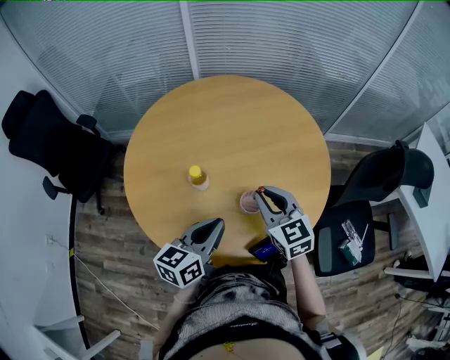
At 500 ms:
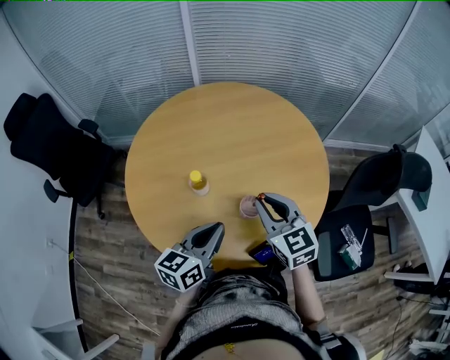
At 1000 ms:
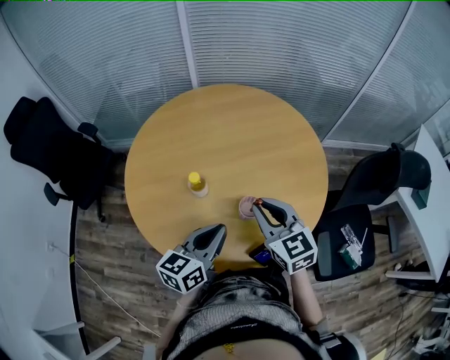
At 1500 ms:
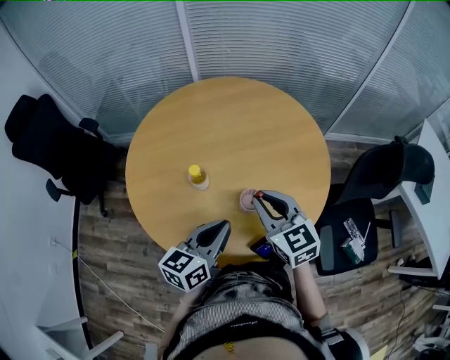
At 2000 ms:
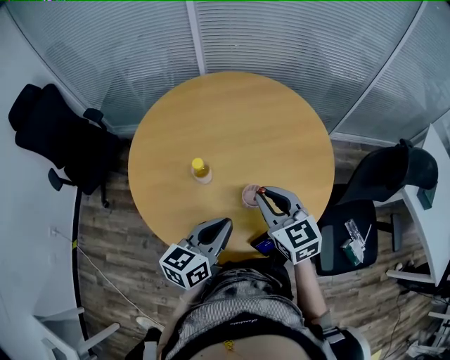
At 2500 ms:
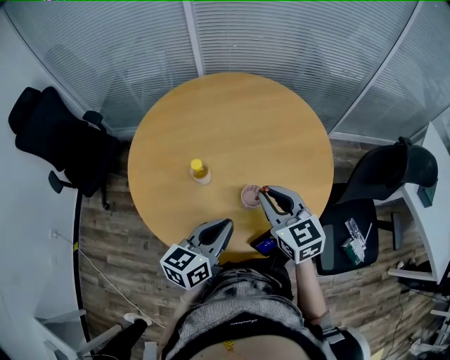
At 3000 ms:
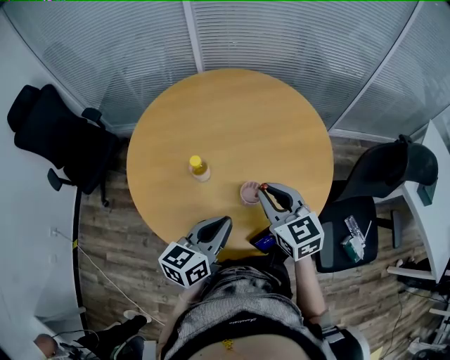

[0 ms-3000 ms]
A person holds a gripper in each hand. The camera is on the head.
0 ms to 3000 ms: The grippers make only small movements.

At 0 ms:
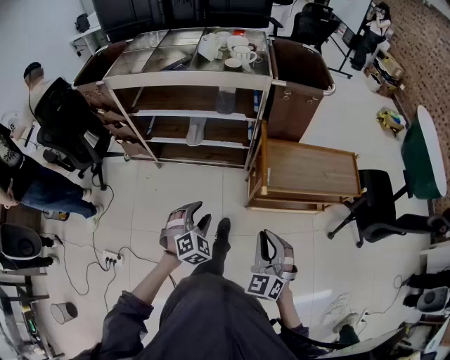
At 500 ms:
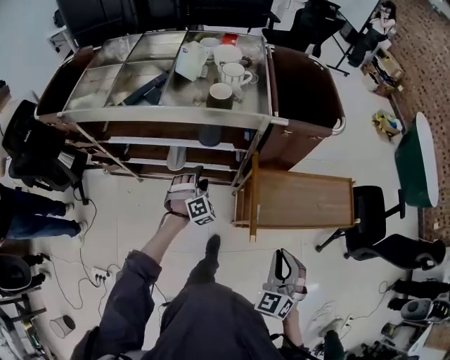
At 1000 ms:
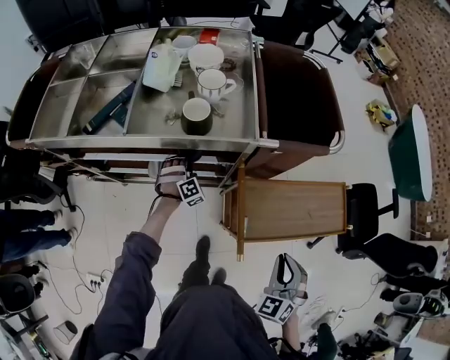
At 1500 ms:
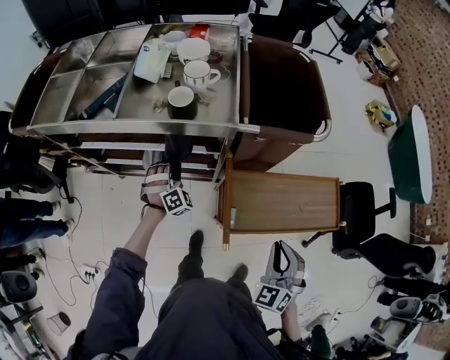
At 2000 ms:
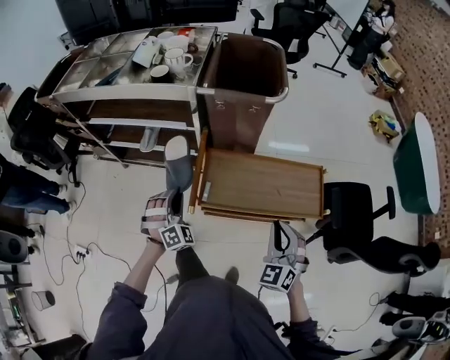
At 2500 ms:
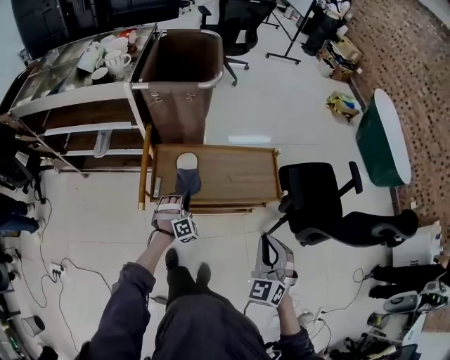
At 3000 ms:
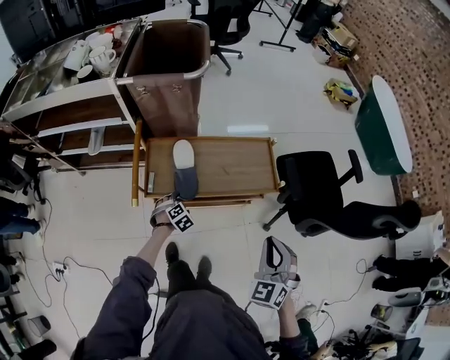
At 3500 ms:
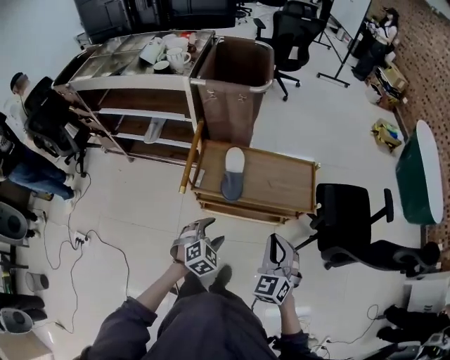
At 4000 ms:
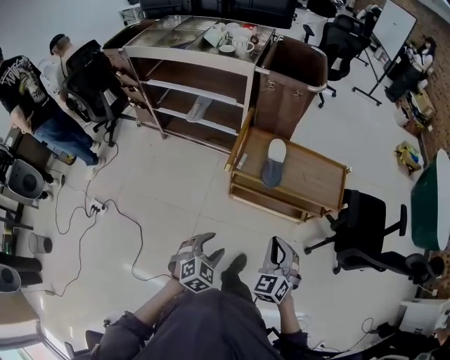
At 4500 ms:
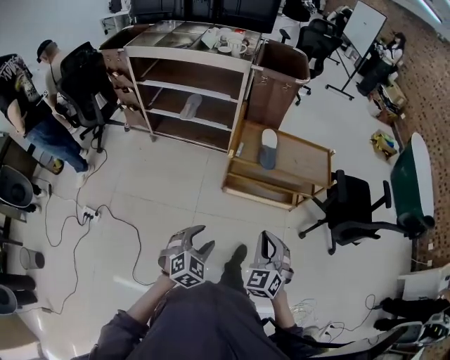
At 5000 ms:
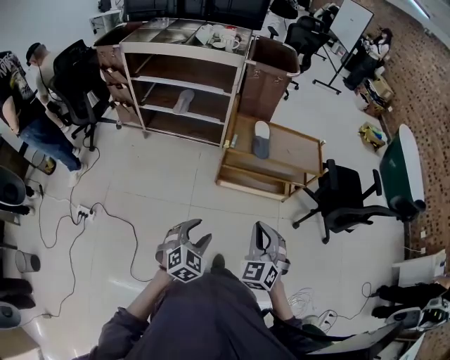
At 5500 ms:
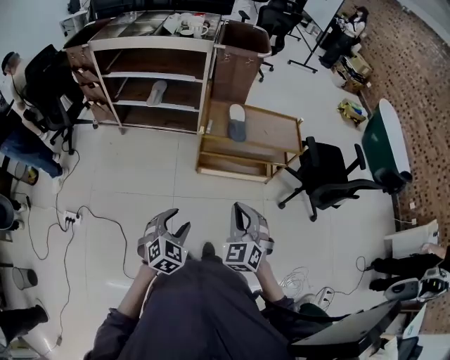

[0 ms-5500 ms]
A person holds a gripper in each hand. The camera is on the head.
0 ms to 2000 ms: The left gripper heads forward and to the right, covering some 25 cm, rotates about 30 degrees, and closes up. Meanwhile the right gripper heads to the right and forward, covering about 35 cm.
2000 ms to 3500 ms: The left gripper shifts about 30 cm to the right and backward, turns by some 40 degrees, and opens its fingers, while the right gripper travels backward and to the right by roughly 15 cm.
3500 ms to 5500 ms: Both grippers move backward and to the left, approximately 35 cm.

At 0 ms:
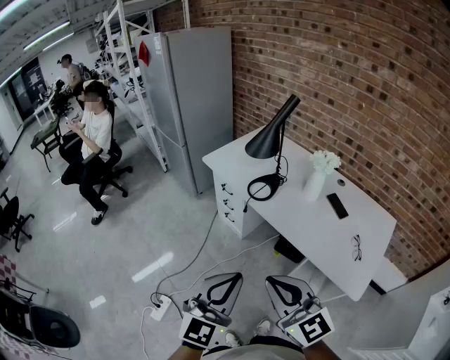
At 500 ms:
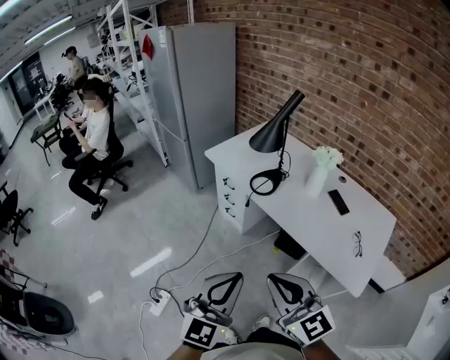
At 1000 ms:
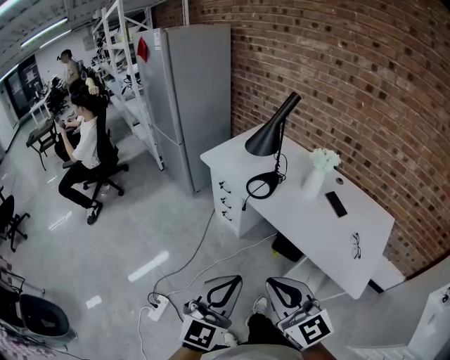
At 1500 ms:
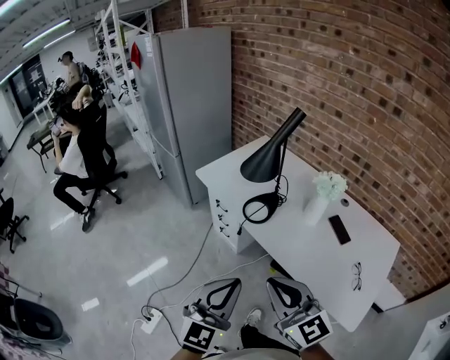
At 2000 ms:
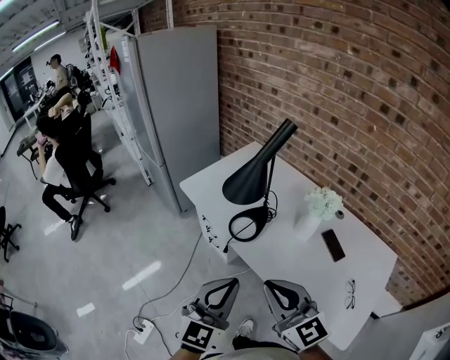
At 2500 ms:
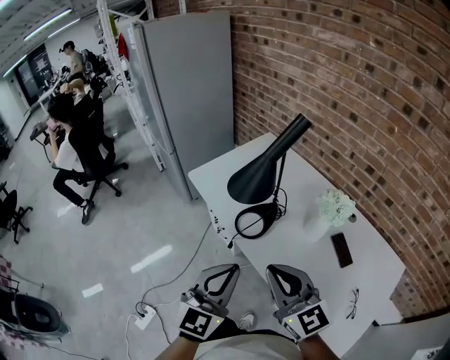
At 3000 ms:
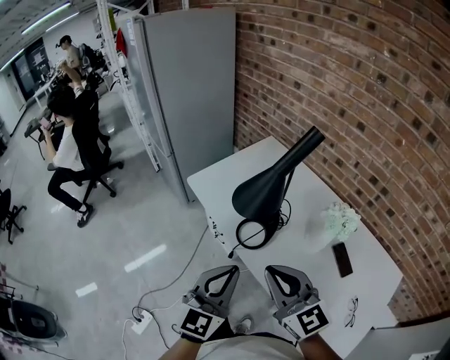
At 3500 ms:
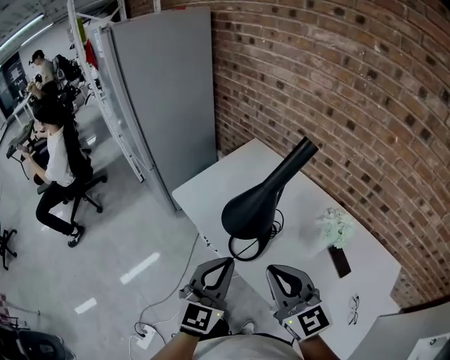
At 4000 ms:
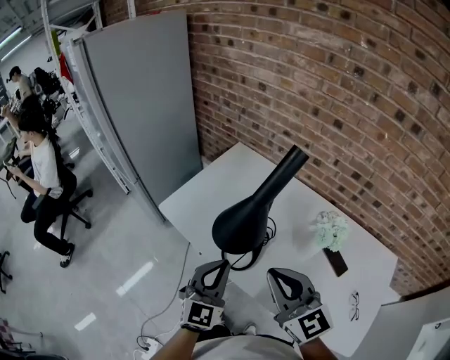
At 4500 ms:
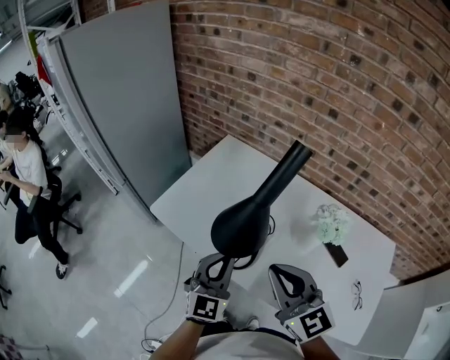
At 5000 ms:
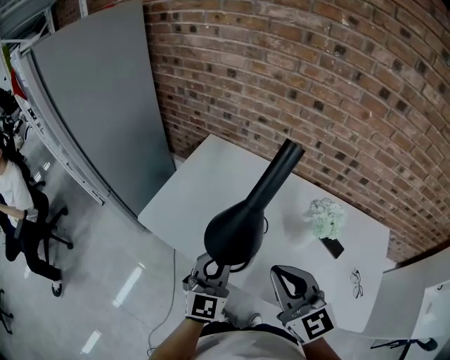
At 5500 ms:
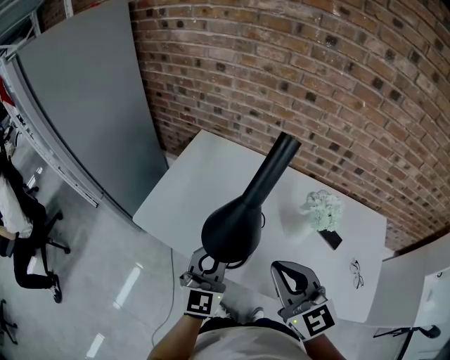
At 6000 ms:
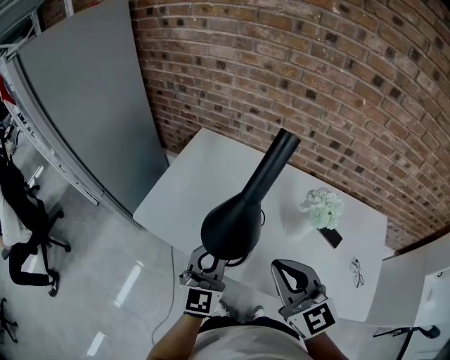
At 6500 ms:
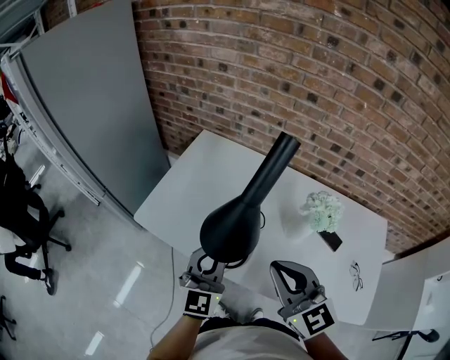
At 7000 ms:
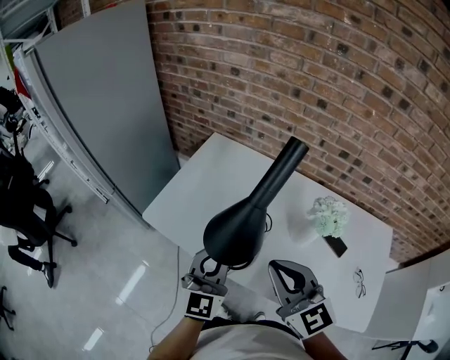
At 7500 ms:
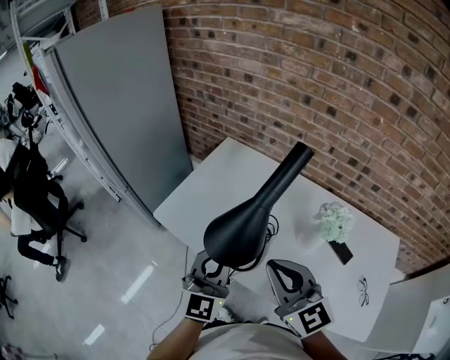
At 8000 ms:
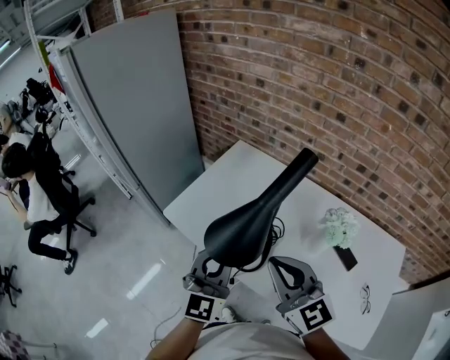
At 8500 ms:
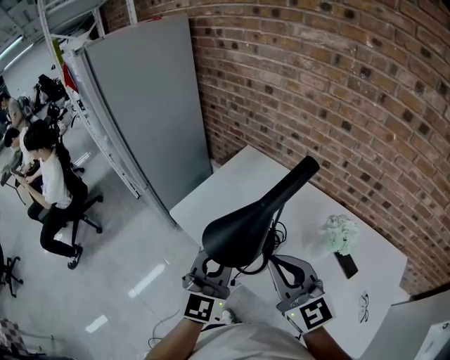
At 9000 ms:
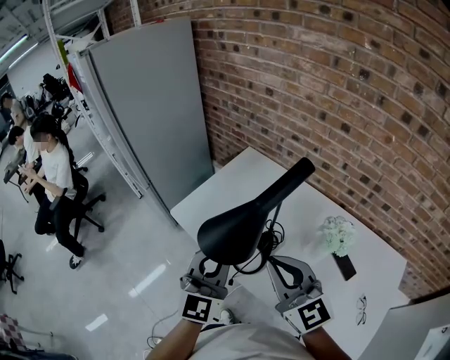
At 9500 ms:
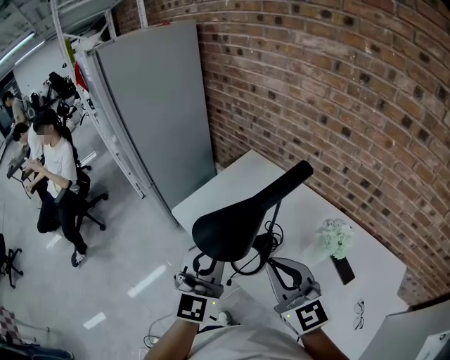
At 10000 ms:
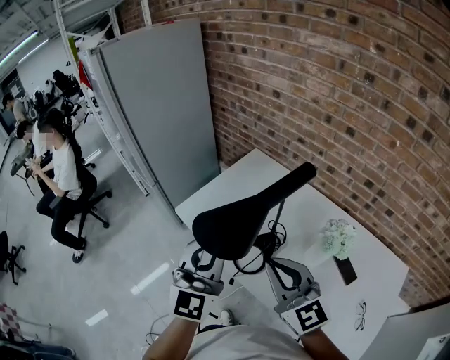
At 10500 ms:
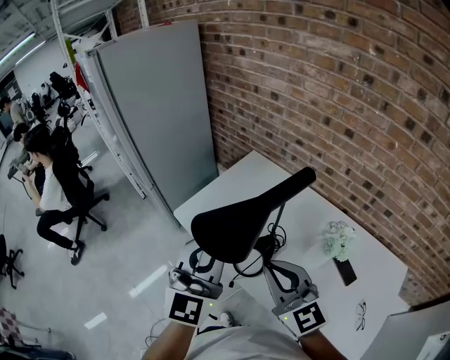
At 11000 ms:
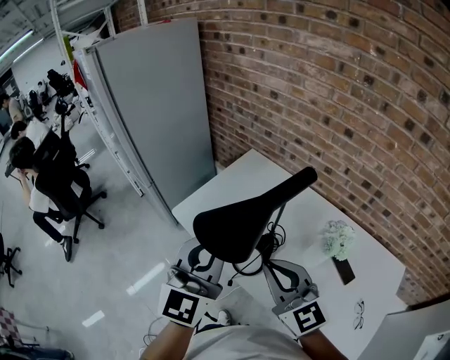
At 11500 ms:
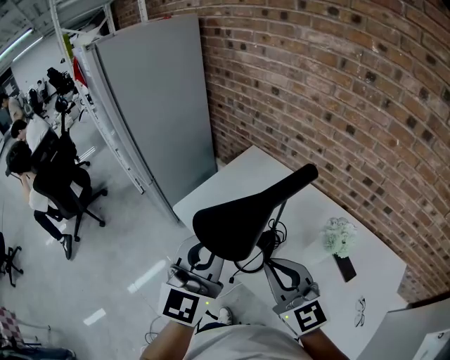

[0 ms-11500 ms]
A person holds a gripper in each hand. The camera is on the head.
0 ms to 2000 ms: Both grippers move forward, roughly 20 cm.
2000 ms to 4000 ms: Both grippers travel together forward, approximately 20 cm.
4000 ms to 6000 ms: The left gripper travels forward by some 5 cm.
6000 ms to 7500 ms: The left gripper shifts by about 5 cm.
7500 ms to 9500 ms: The left gripper heads upward, covering about 10 cm.
9500 ms to 11500 ms: The left gripper travels upward by about 5 cm.

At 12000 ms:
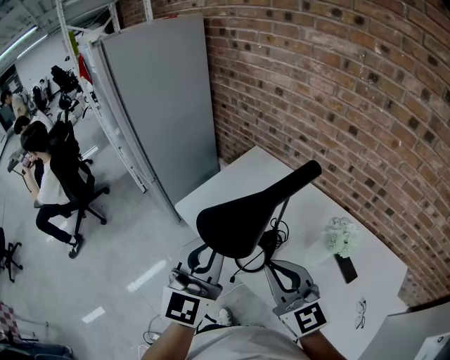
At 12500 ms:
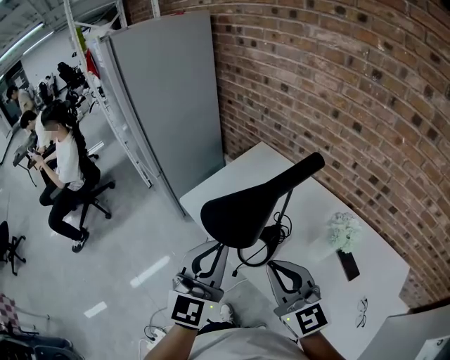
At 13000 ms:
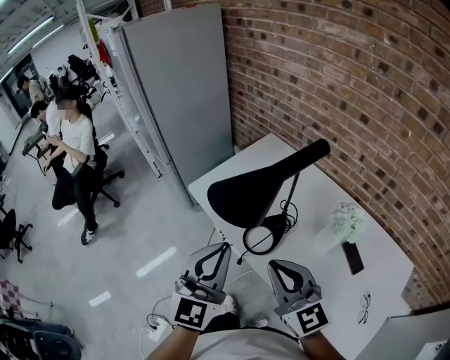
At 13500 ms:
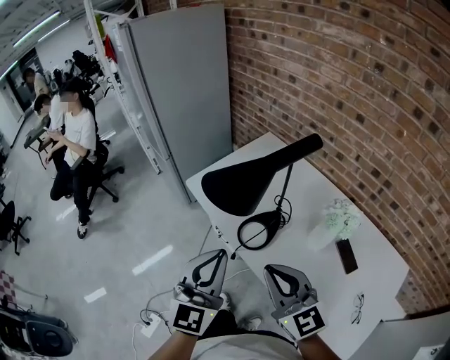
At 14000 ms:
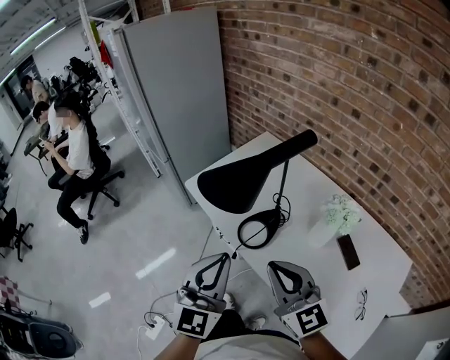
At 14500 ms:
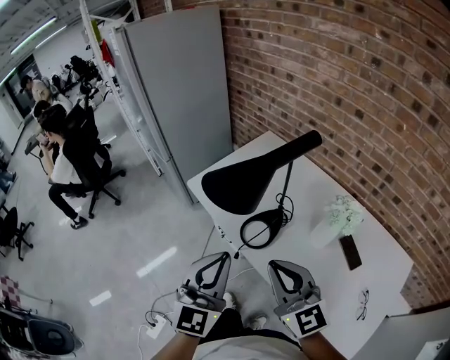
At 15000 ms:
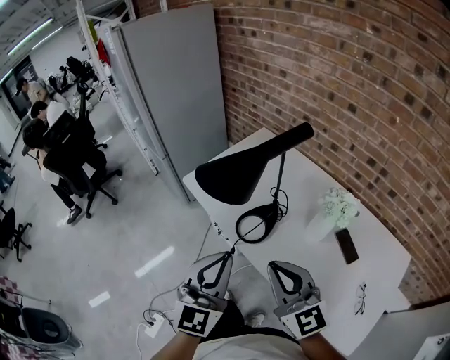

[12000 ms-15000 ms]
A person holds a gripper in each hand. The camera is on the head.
12000 ms to 13500 ms: The left gripper shifts about 15 cm backward and downward. The right gripper shifts about 10 cm backward.
13500 ms to 15000 ms: The grippers stay close to where they were, moving slightly.

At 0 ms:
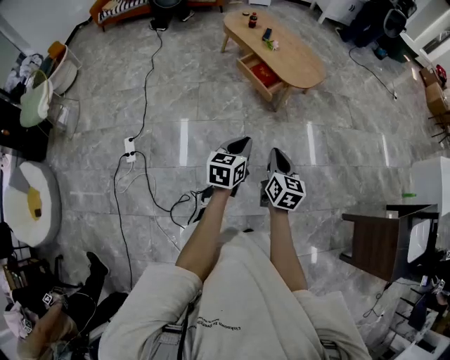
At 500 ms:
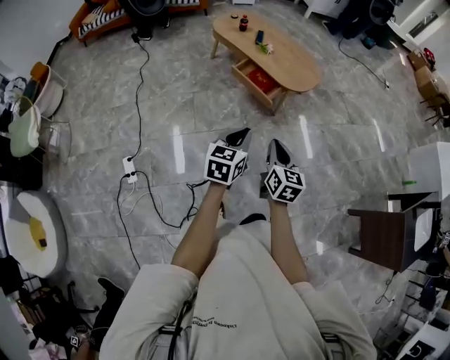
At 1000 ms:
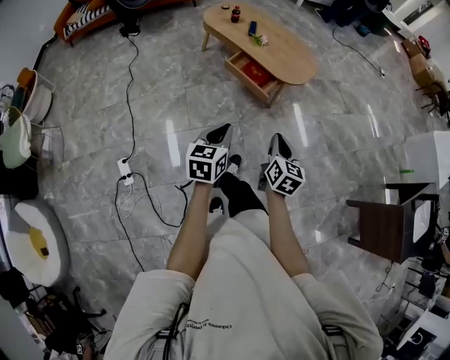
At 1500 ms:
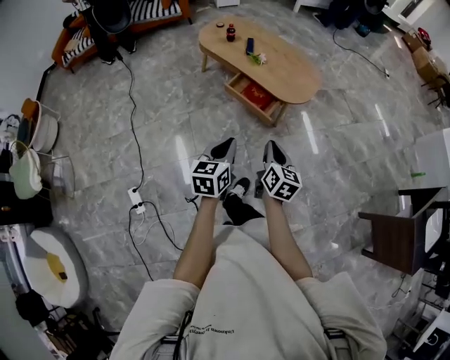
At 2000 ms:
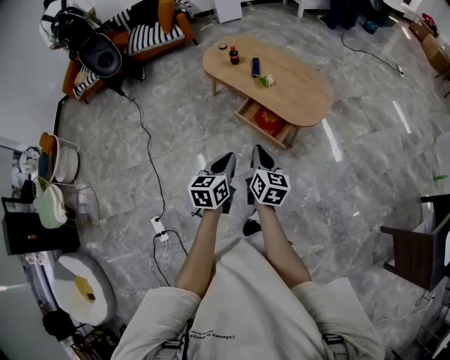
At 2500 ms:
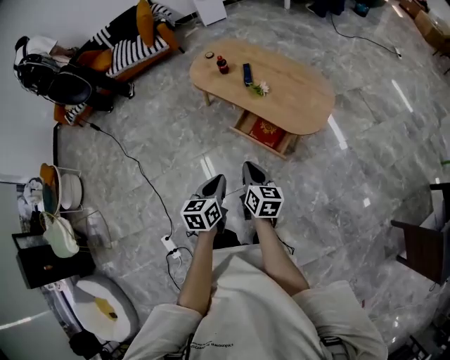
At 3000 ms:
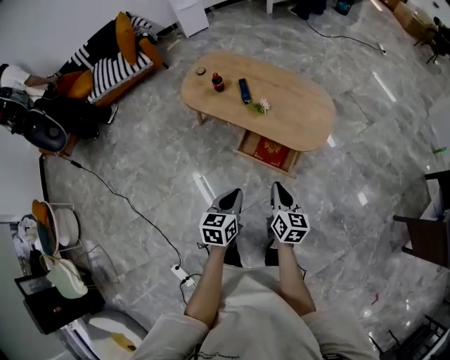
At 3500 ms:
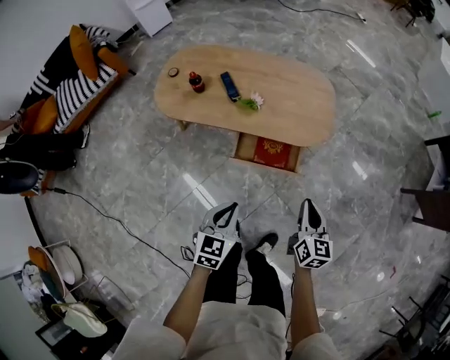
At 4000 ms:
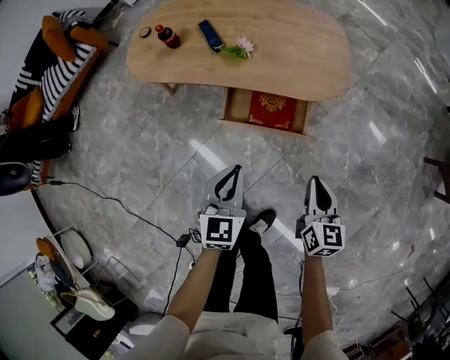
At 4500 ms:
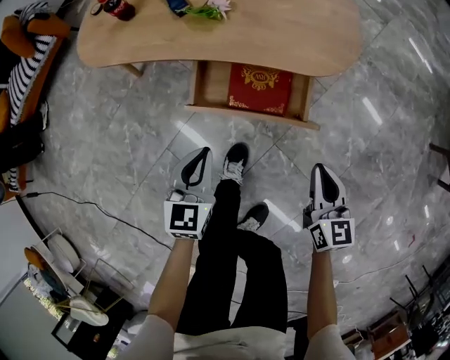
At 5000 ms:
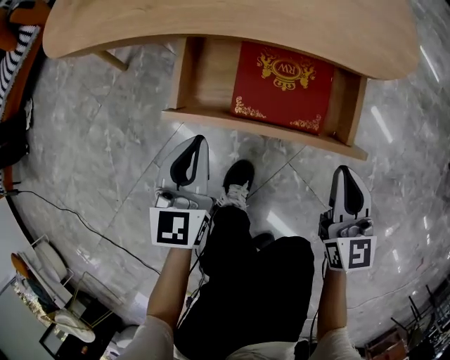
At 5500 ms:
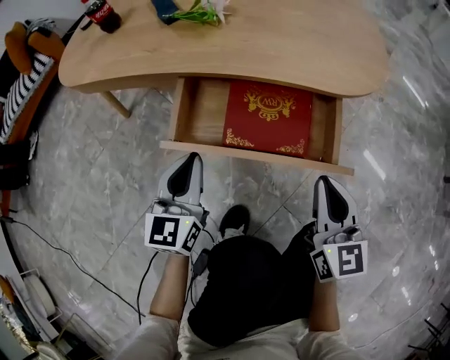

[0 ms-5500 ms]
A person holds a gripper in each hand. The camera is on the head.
0 ms to 2000 ms: The grippers both shift forward and to the left by some 40 cm.
2000 ms to 3500 ms: The left gripper shifts by approximately 30 cm, and turns by some 40 degrees; the right gripper travels downward by approximately 15 cm, and changes its angle by some 30 degrees.
3500 ms to 5500 ms: Both grippers travel together downward, approximately 40 cm. The left gripper swivels some 30 degrees.
